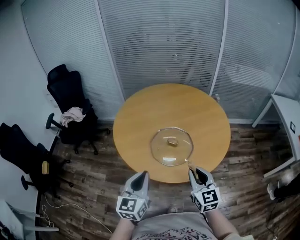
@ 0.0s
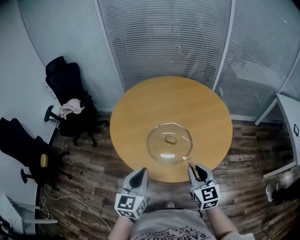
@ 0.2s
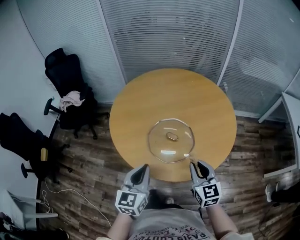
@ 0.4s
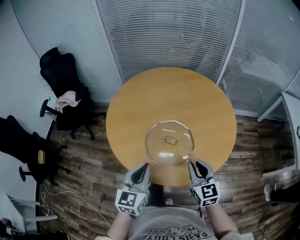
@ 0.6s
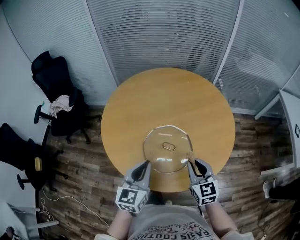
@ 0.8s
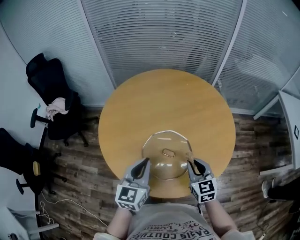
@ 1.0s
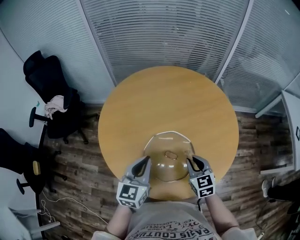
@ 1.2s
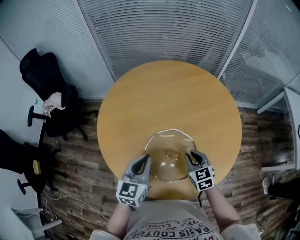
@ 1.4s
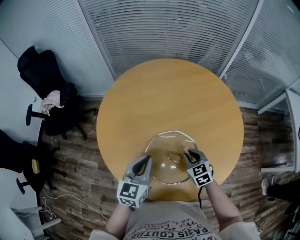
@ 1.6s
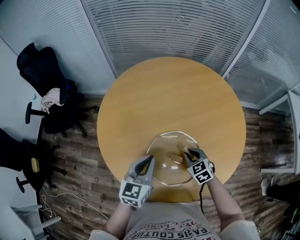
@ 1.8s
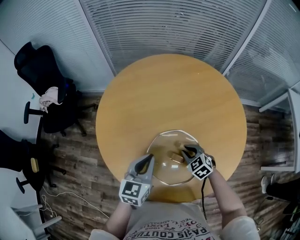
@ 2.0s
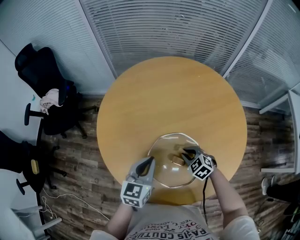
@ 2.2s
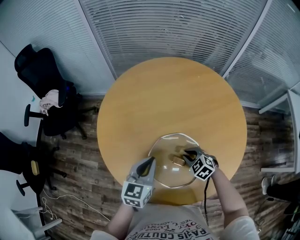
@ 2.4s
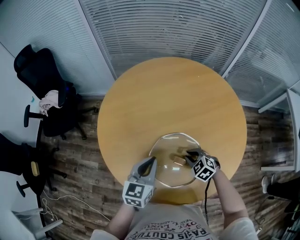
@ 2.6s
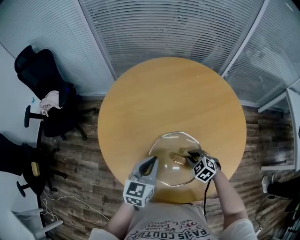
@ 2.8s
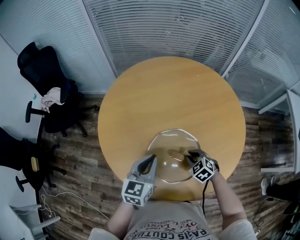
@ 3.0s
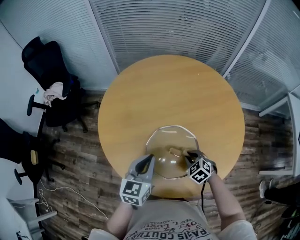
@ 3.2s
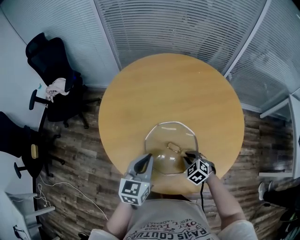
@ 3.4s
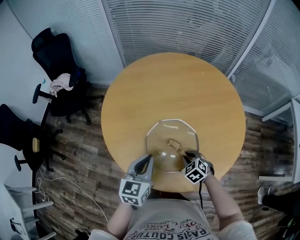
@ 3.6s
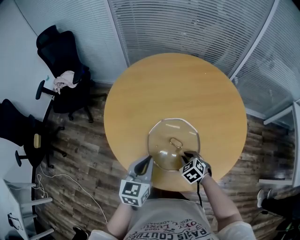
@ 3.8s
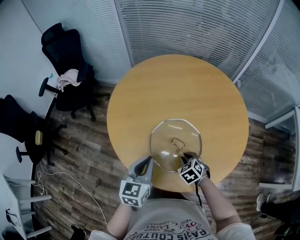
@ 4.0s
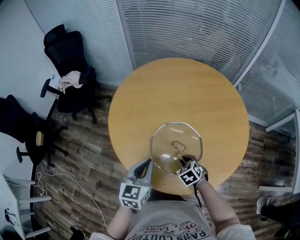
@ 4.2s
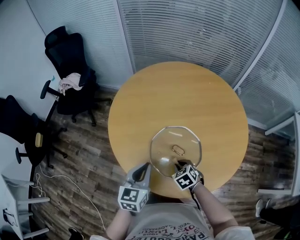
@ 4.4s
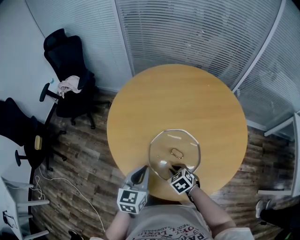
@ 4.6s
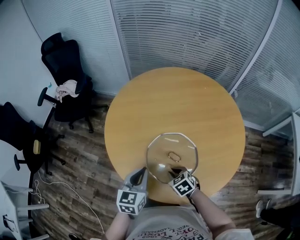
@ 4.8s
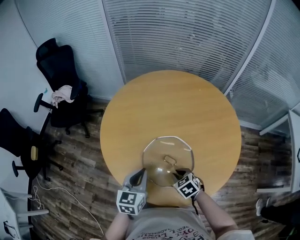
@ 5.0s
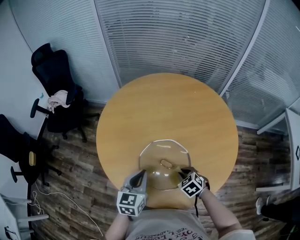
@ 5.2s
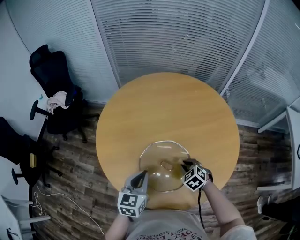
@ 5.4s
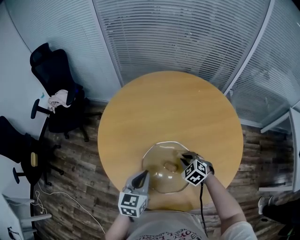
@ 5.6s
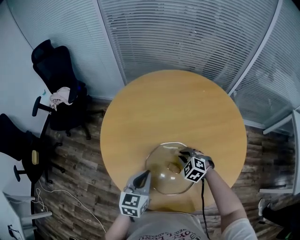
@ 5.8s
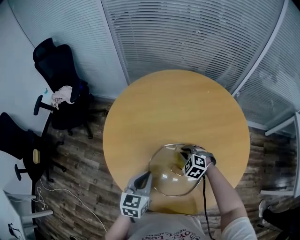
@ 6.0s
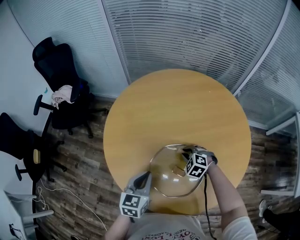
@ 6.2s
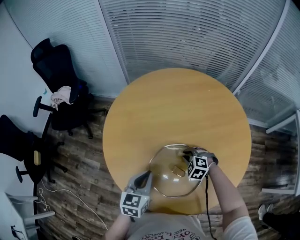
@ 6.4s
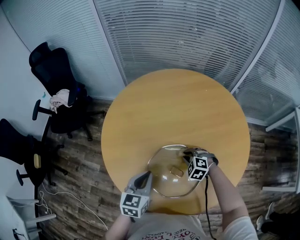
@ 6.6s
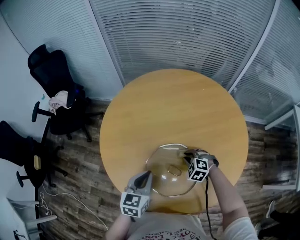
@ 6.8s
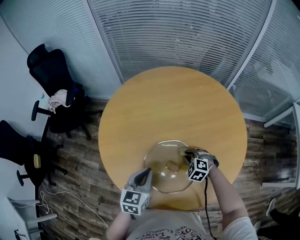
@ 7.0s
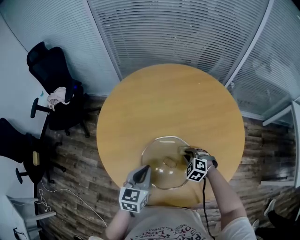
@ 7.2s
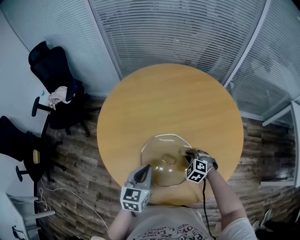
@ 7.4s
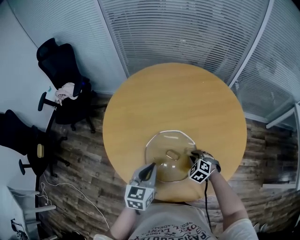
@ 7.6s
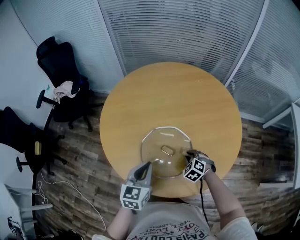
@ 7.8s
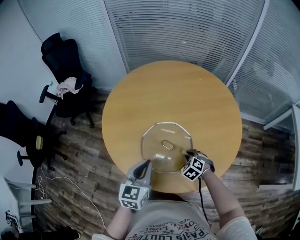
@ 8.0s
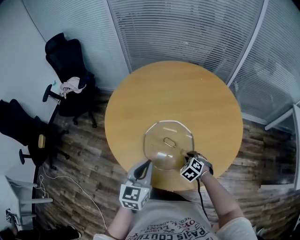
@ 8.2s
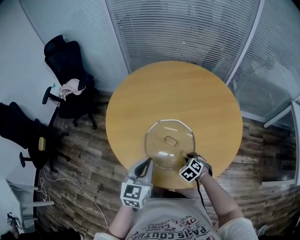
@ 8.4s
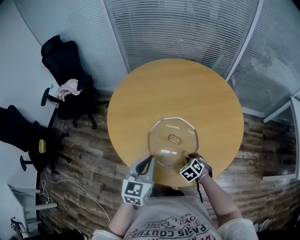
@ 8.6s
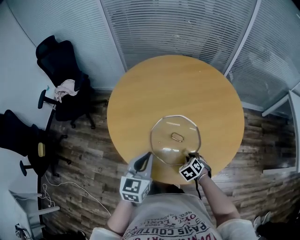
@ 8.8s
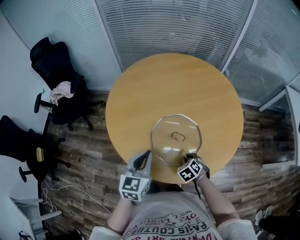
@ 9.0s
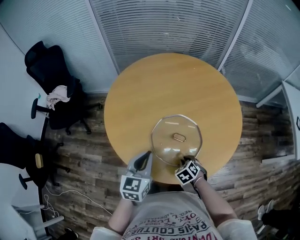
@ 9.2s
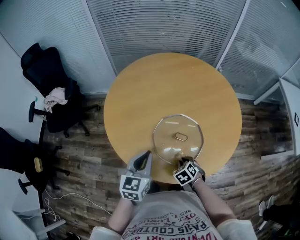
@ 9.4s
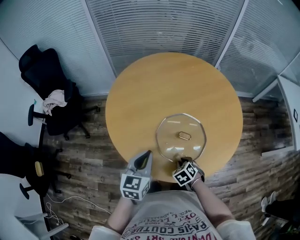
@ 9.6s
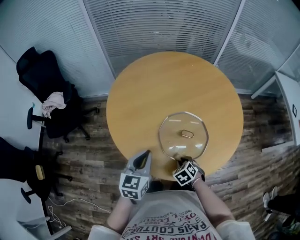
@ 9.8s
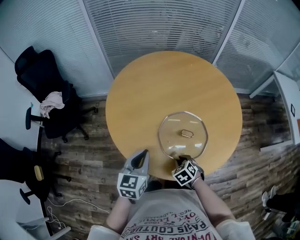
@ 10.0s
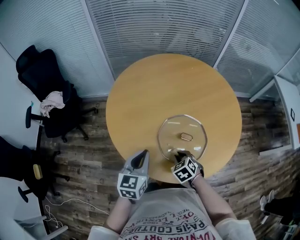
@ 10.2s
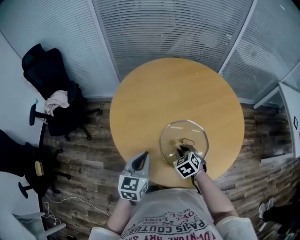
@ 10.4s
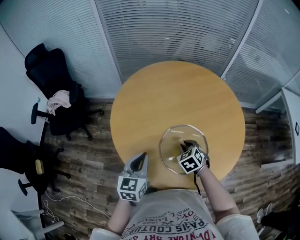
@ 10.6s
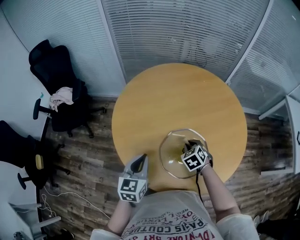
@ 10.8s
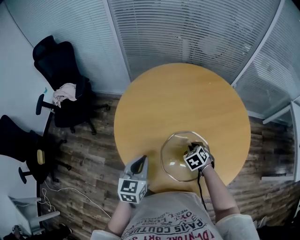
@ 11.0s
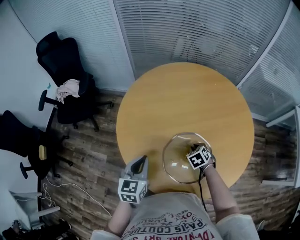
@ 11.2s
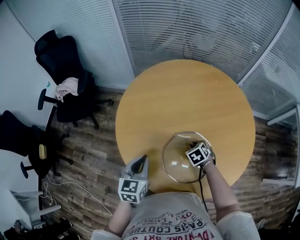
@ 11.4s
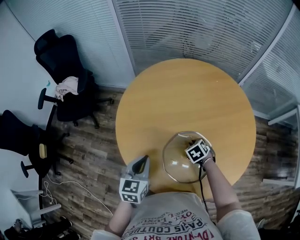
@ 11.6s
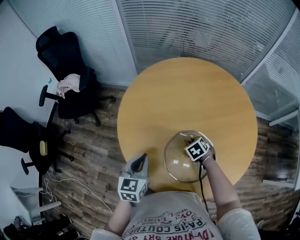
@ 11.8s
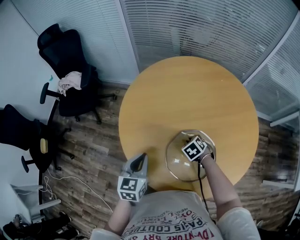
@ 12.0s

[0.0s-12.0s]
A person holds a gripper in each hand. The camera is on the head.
0.0s to 1.6s: The right gripper heads forward and downward, covering some 35 cm, and changes its angle by approximately 30 degrees, while the left gripper is displaced forward by approximately 30 cm.
1.6s to 3.0s: The right gripper travels downward by roughly 5 cm, and rotates about 20 degrees.
3.0s to 4.4s: The left gripper goes roughly 10 cm backward. The right gripper heads backward and to the left, covering roughly 10 cm.
4.4s to 6.0s: The left gripper travels forward by roughly 10 cm. Meanwhile the right gripper travels forward by approximately 15 cm, and turns by about 30 degrees.
6.0s to 7.6s: The right gripper shifts approximately 15 cm backward and to the right. Meanwhile the left gripper shifts roughly 5 cm backward and to the right.
7.6s to 9.0s: The left gripper is displaced to the left by approximately 10 cm; the right gripper moves backward and to the left, approximately 15 cm, and changes its angle by some 30 degrees.
9.0s to 10.4s: The left gripper heads to the left, covering approximately 10 cm, while the right gripper travels to the left, upward and forward by roughly 15 cm.
10.4s to 12.0s: The left gripper changes place by some 5 cm; the right gripper heads forward and downward, covering roughly 15 cm.

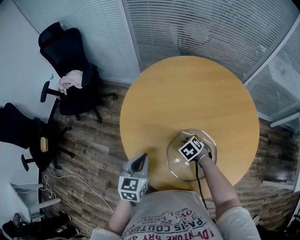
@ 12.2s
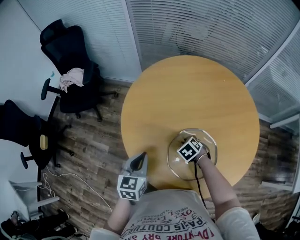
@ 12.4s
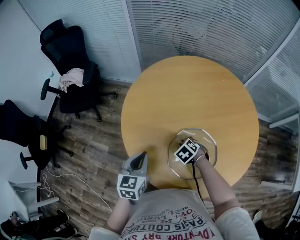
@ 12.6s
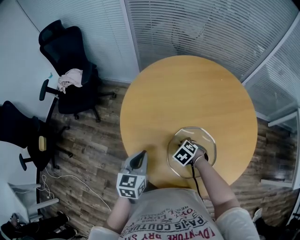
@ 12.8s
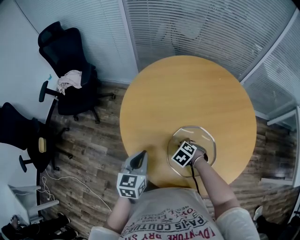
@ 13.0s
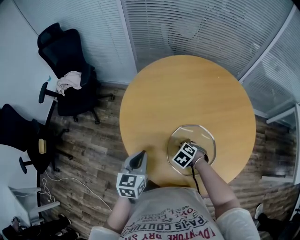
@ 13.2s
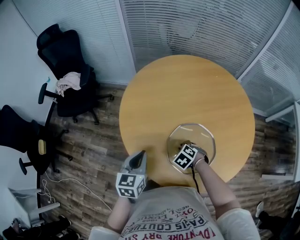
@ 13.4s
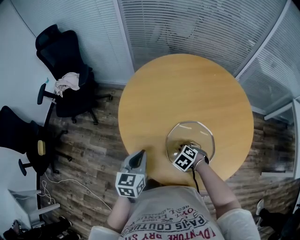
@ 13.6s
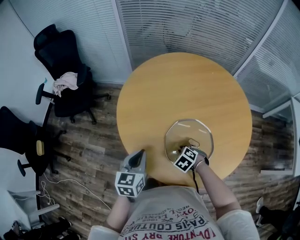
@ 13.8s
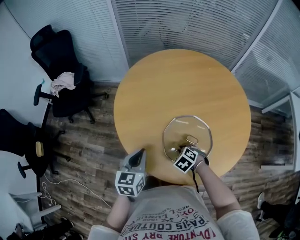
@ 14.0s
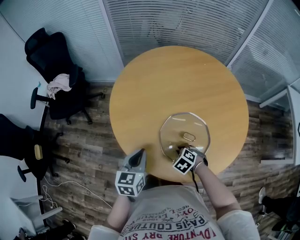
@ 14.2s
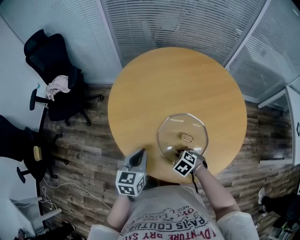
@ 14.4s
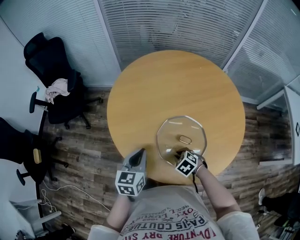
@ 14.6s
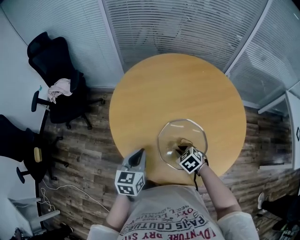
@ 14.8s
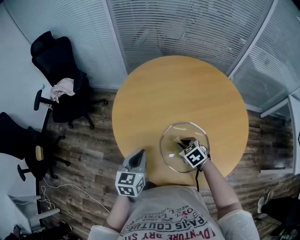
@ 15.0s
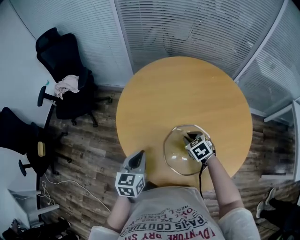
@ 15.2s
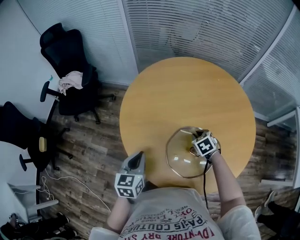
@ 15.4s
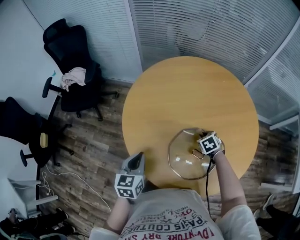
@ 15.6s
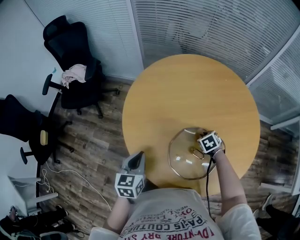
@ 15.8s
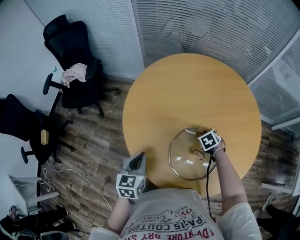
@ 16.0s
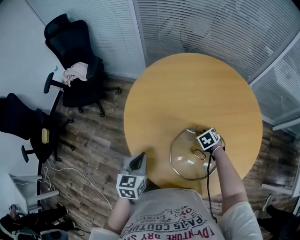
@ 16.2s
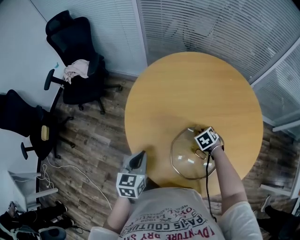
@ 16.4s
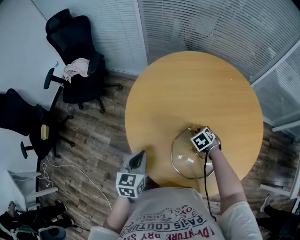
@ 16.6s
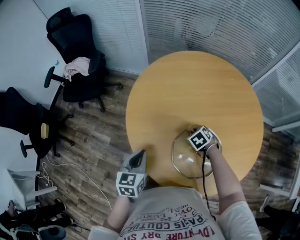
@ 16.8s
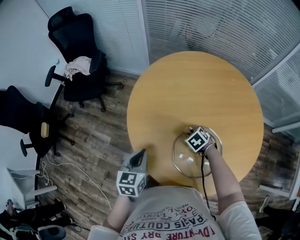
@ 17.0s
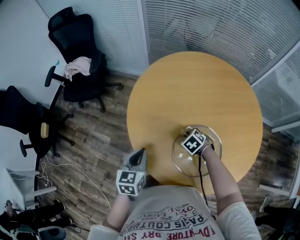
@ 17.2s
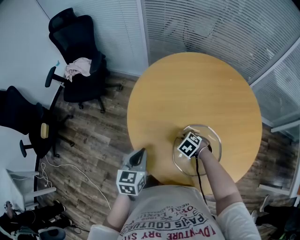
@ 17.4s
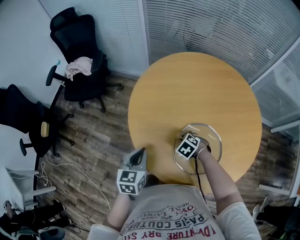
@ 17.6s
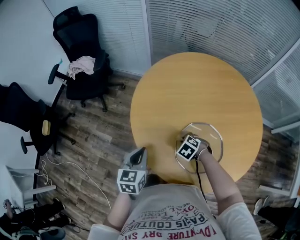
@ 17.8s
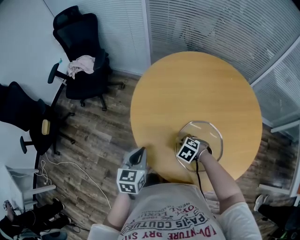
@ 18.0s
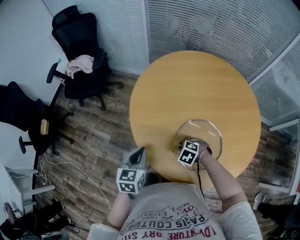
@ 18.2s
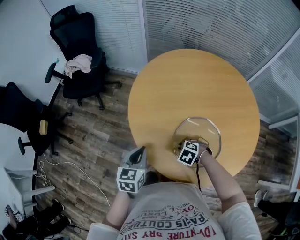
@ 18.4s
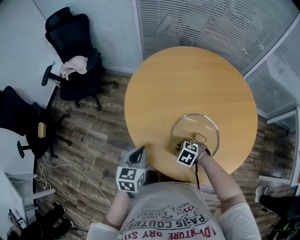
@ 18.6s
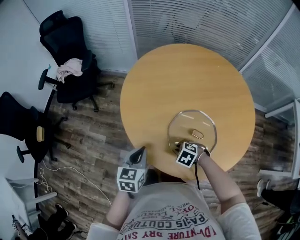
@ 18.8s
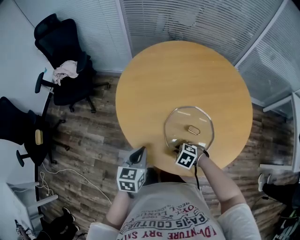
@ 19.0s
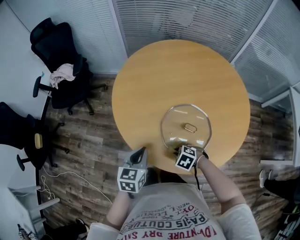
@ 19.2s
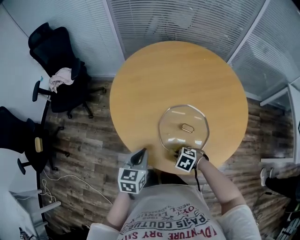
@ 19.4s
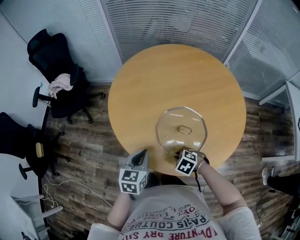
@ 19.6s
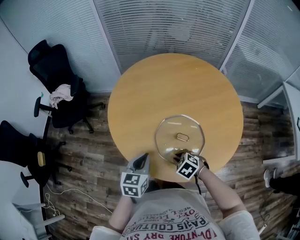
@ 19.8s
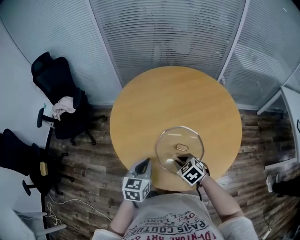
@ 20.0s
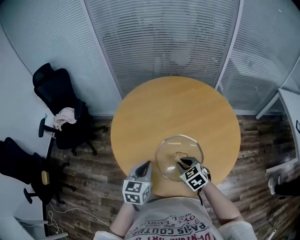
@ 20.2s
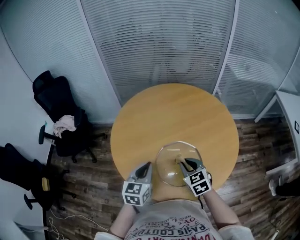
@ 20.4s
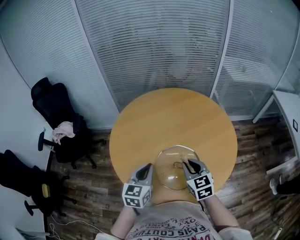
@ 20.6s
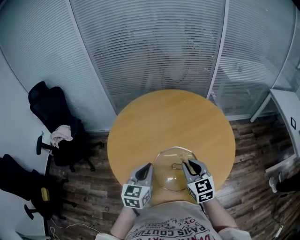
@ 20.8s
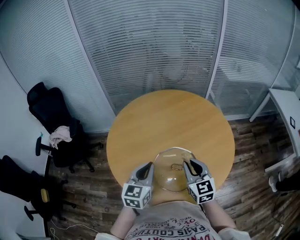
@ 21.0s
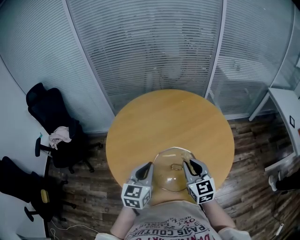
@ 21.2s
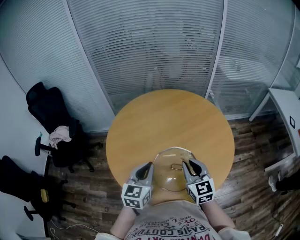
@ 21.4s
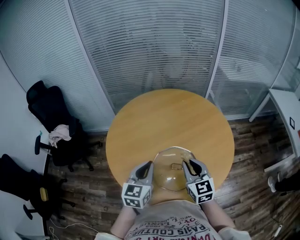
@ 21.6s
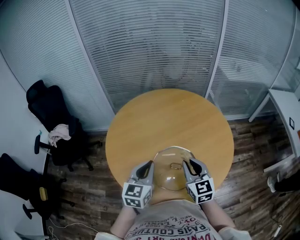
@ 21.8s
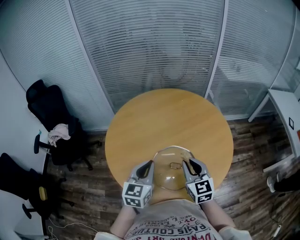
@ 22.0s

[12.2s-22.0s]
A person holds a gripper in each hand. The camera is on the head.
12.2s to 13.6s: The right gripper moves approximately 10 cm.
13.6s to 15.0s: The right gripper goes some 5 cm upward, and rotates about 20 degrees.
15.0s to 16.4s: The left gripper shifts by some 5 cm; the right gripper shifts by about 15 cm.
16.4s to 17.8s: The right gripper ends up some 15 cm from where it was, and rotates approximately 30 degrees.
17.8s to 19.2s: The right gripper shifts by approximately 15 cm. The left gripper shifts by approximately 10 cm.
19.2s to 20.6s: The left gripper moves upward, some 10 cm, while the right gripper travels upward by roughly 25 cm, and tilts its fingers some 50 degrees upward.
20.6s to 22.0s: There are only small adjustments of the grippers.

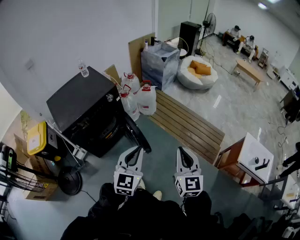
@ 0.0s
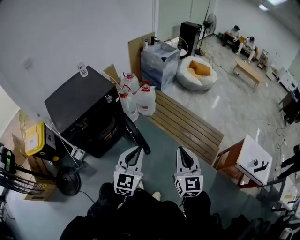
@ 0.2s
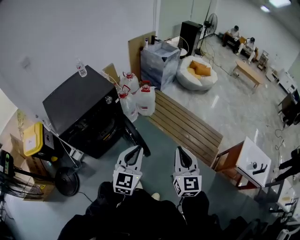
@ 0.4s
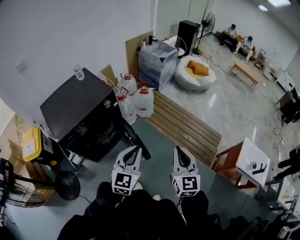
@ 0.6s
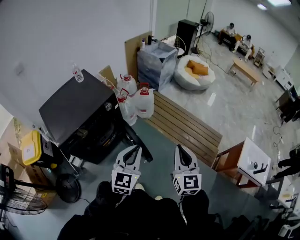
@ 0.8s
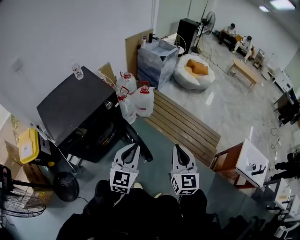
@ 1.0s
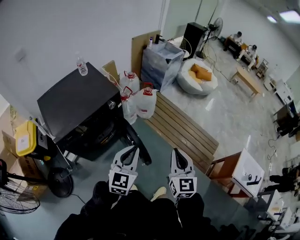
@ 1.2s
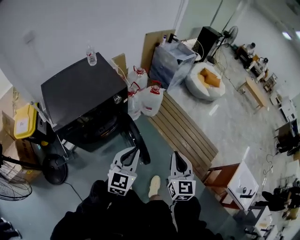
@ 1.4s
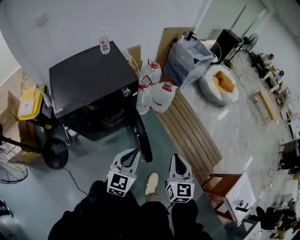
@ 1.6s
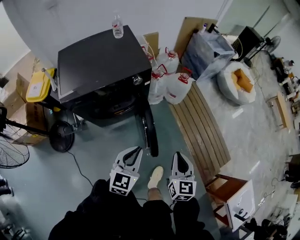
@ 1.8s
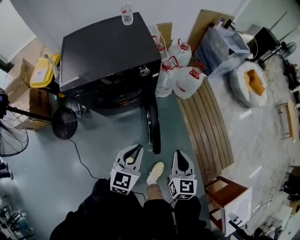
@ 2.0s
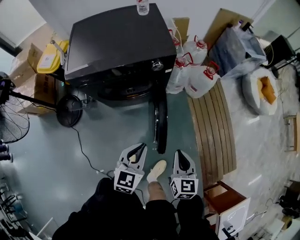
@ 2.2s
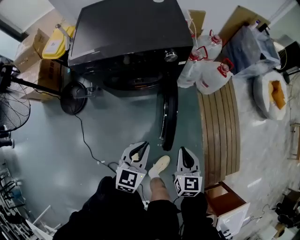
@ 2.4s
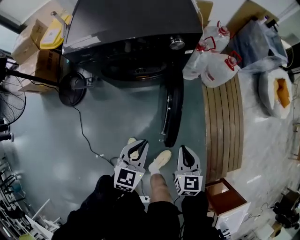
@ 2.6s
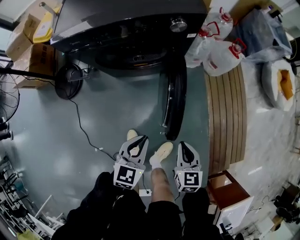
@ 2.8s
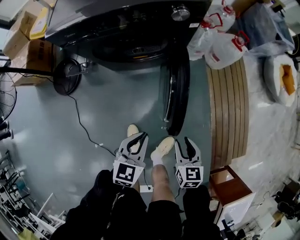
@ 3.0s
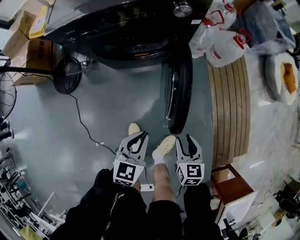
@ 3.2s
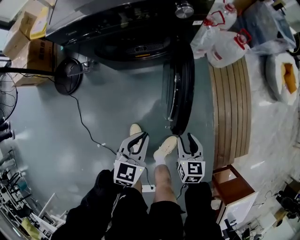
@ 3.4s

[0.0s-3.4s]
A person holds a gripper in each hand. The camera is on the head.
0.0s to 1.6s: The grippers both shift forward, to the left and downward by some 25 cm.
1.6s to 3.4s: Both grippers travel together downward, roughly 40 cm. The right gripper changes its angle by some 40 degrees, and opens its fingers, while the left gripper changes its angle by approximately 30 degrees.
